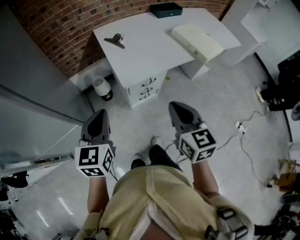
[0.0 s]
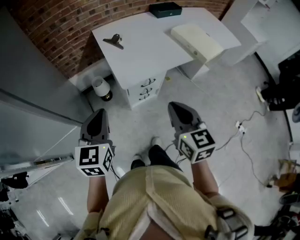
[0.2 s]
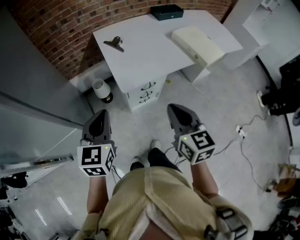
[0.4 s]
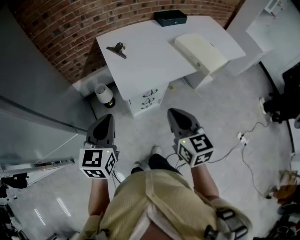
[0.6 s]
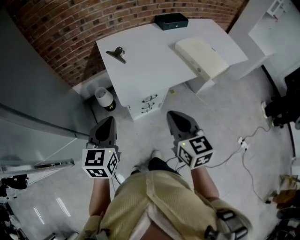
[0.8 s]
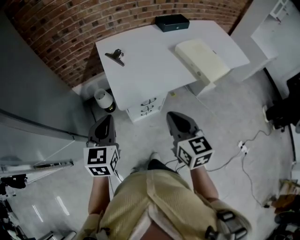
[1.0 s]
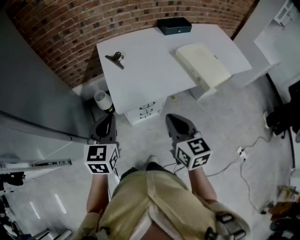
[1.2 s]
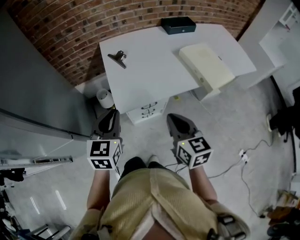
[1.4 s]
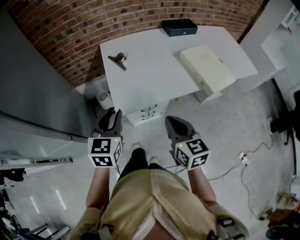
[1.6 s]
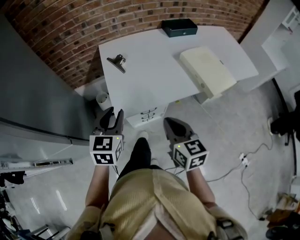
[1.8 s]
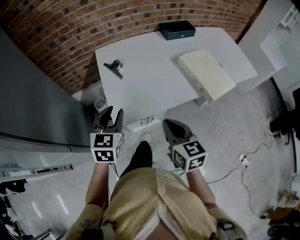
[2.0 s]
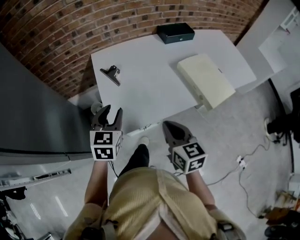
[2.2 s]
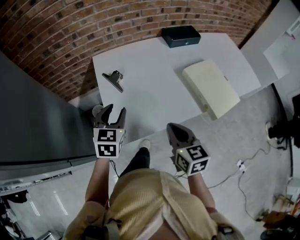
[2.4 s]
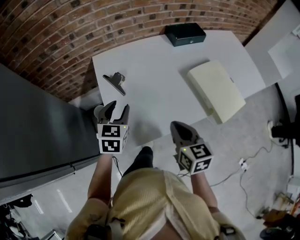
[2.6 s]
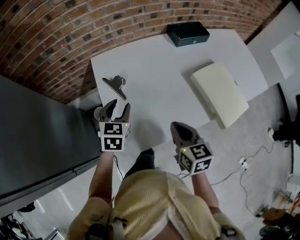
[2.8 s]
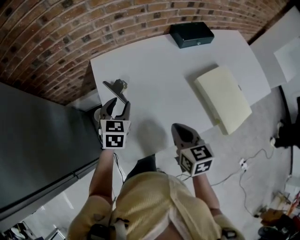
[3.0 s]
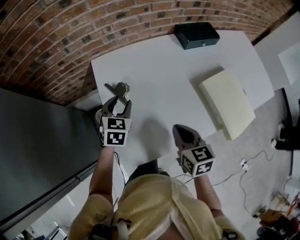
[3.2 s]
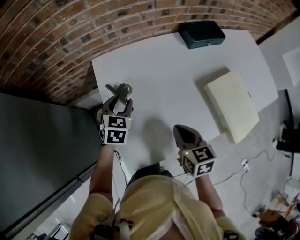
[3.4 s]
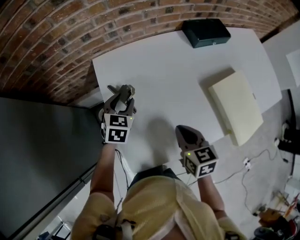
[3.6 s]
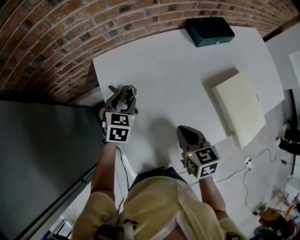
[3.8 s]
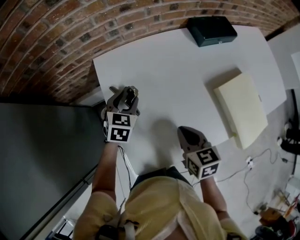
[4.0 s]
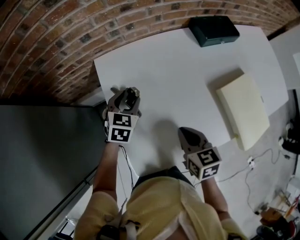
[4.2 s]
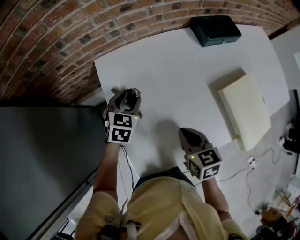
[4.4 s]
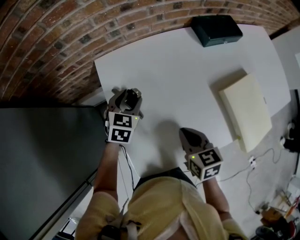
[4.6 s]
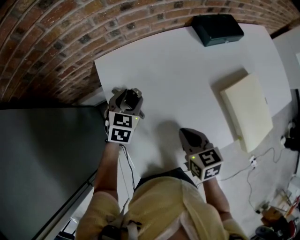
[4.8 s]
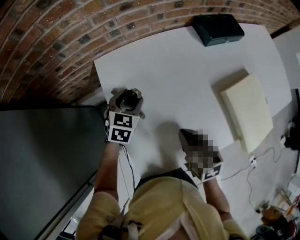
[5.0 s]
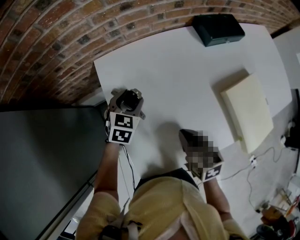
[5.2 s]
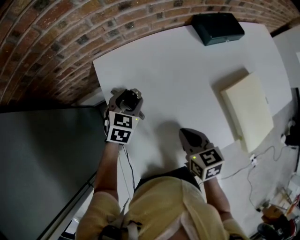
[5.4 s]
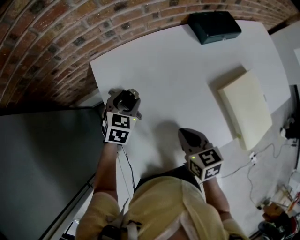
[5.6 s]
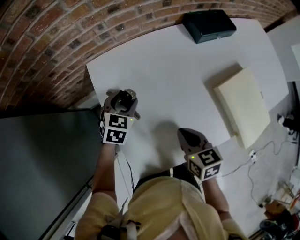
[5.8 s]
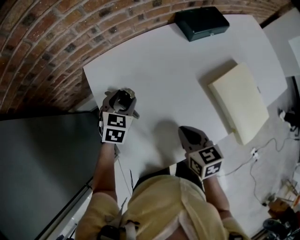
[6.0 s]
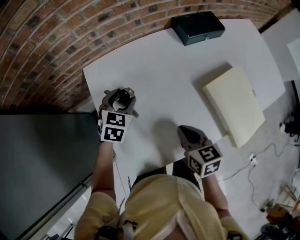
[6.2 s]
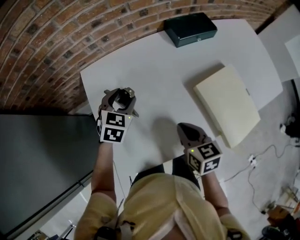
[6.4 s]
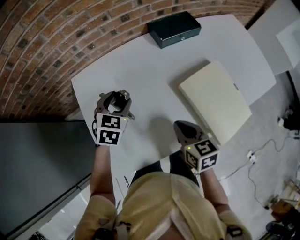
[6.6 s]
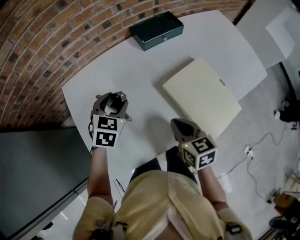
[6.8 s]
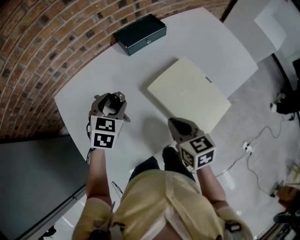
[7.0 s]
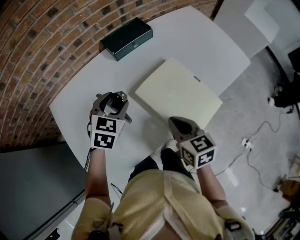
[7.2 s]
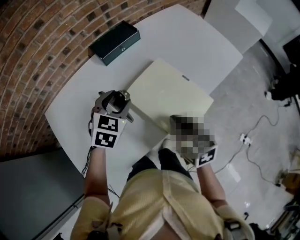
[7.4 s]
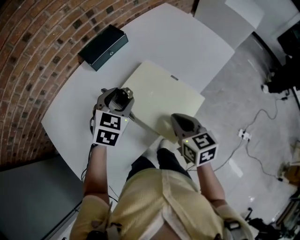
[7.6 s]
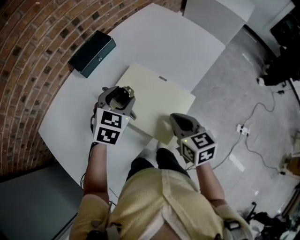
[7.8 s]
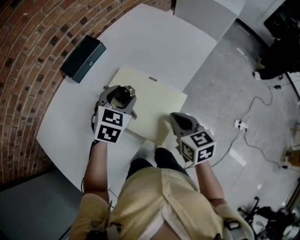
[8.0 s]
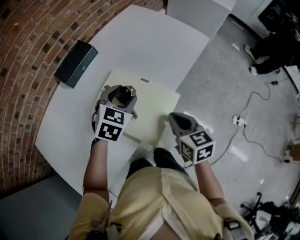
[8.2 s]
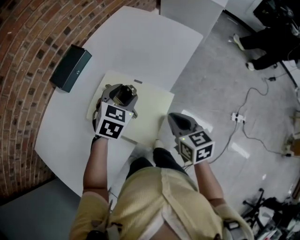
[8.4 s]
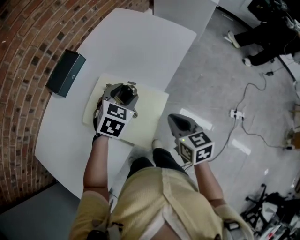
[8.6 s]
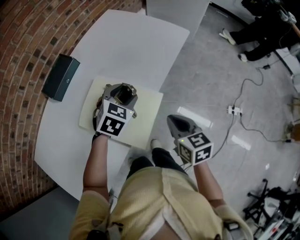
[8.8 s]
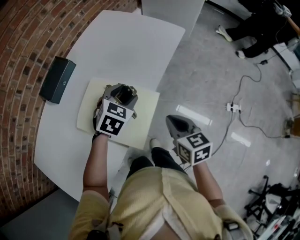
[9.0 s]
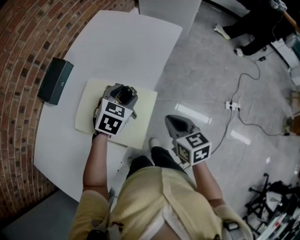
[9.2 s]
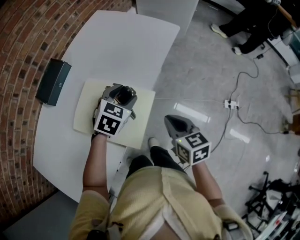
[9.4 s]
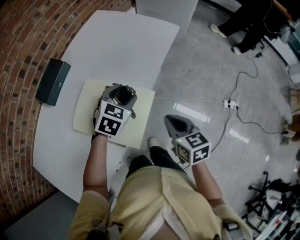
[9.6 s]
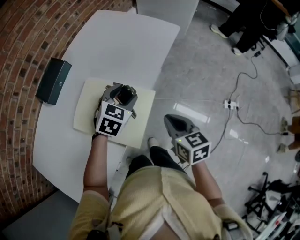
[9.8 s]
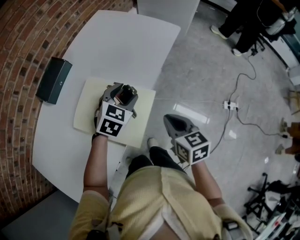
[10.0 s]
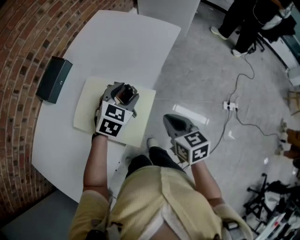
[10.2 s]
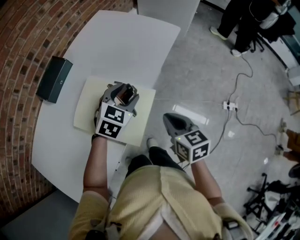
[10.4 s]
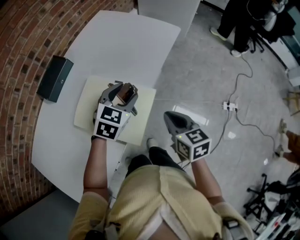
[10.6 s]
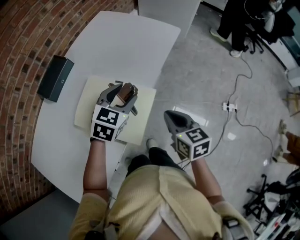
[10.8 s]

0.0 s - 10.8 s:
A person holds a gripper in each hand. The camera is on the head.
0.0 s - 1.6 s: Both grippers move forward and to the right, about 15 cm.
1.6 s - 3.0 s: Both grippers move forward, roughly 30 cm. The left gripper opens up.
3.0 s - 4.6 s: Both grippers travel together forward and downward, some 10 cm.
4.6 s - 6.2 s: The grippers both shift to the right by about 5 cm.
6.2 s - 7.8 s: The left gripper moves roughly 50 cm, and changes its angle by some 30 degrees. Meanwhile the right gripper ends up approximately 35 cm from where it was, and rotates roughly 30 degrees.
7.8 s - 9.2 s: The two grippers go about 15 cm to the right. The left gripper rotates about 20 degrees.
9.2 s - 10.8 s: The grippers make only small movements.

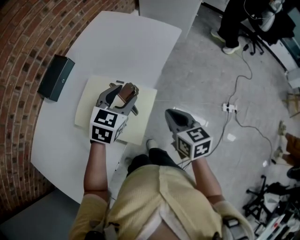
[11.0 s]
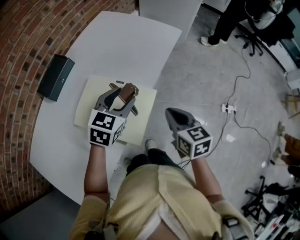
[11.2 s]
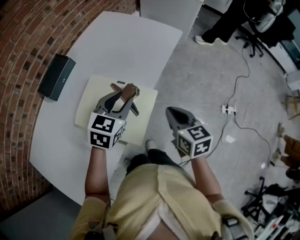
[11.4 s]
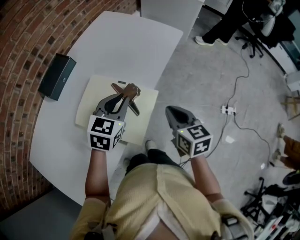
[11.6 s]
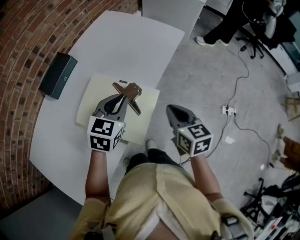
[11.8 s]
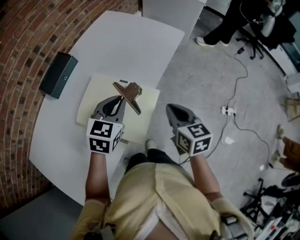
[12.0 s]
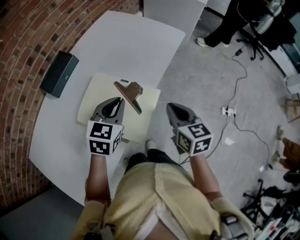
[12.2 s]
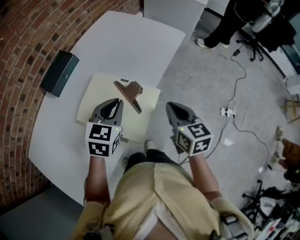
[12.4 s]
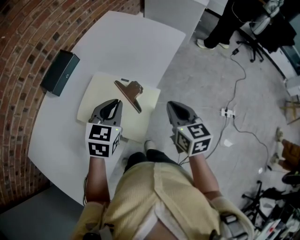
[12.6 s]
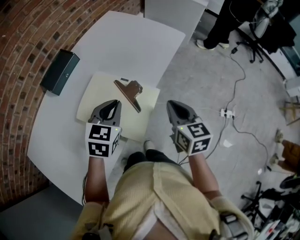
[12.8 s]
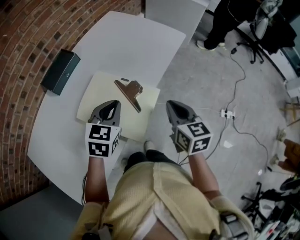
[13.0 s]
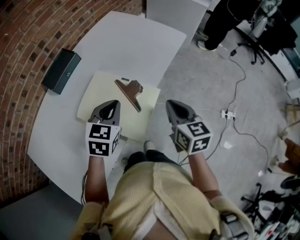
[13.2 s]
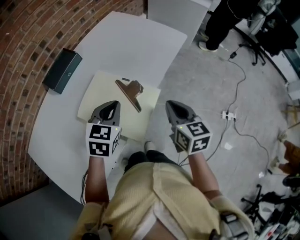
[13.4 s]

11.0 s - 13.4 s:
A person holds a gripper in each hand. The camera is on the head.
11.0 s - 12.2 s: The left gripper moves about 5 cm, and closes its fingers.
12.2 s - 13.4 s: The grippers make only small movements.

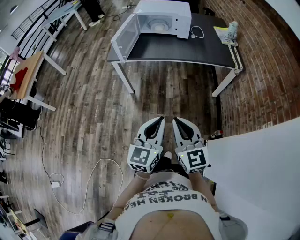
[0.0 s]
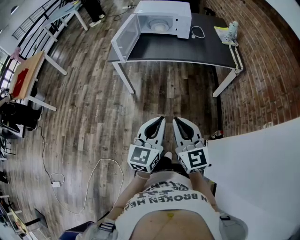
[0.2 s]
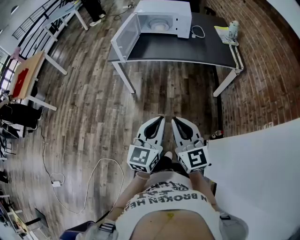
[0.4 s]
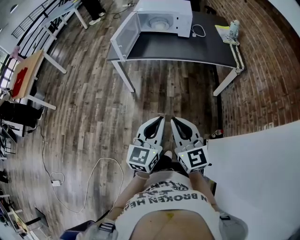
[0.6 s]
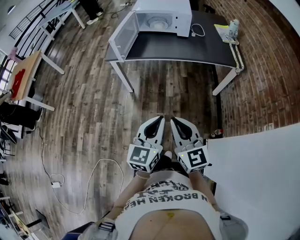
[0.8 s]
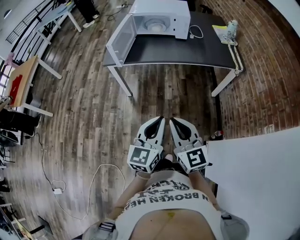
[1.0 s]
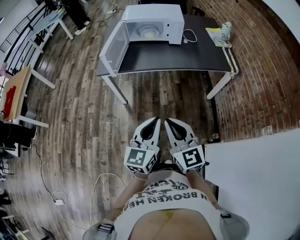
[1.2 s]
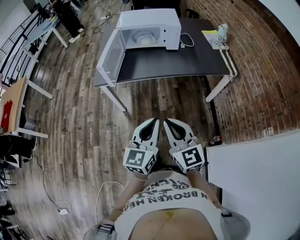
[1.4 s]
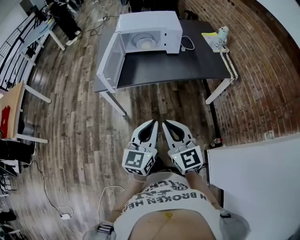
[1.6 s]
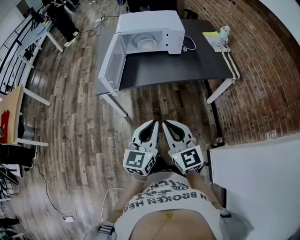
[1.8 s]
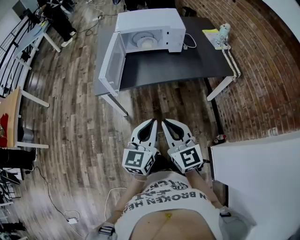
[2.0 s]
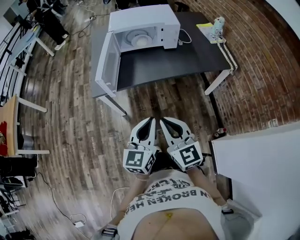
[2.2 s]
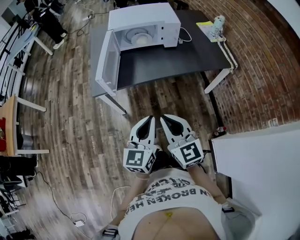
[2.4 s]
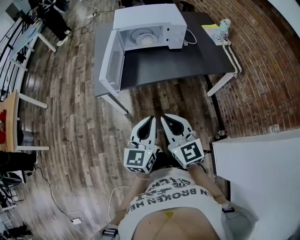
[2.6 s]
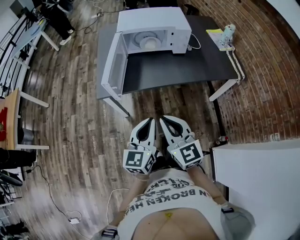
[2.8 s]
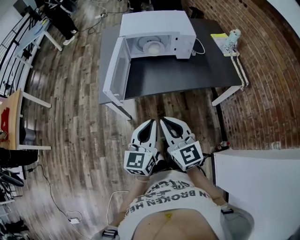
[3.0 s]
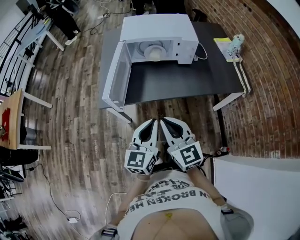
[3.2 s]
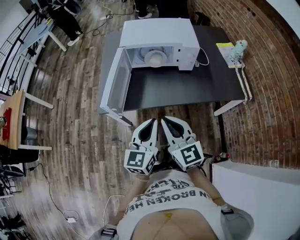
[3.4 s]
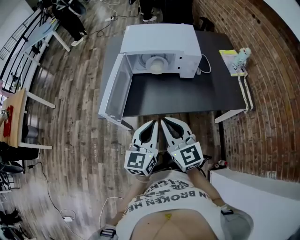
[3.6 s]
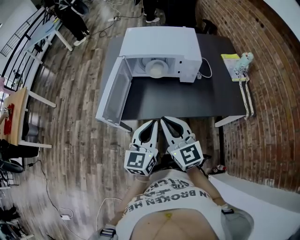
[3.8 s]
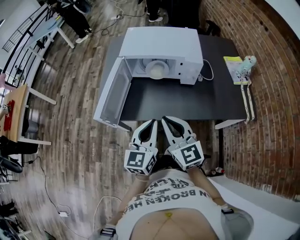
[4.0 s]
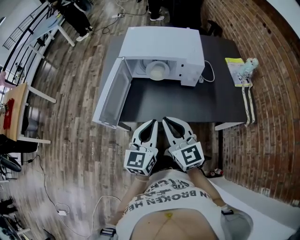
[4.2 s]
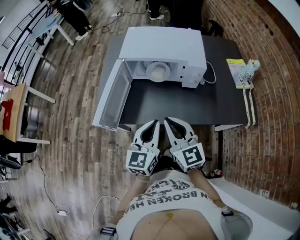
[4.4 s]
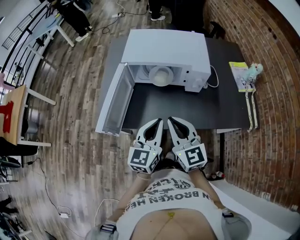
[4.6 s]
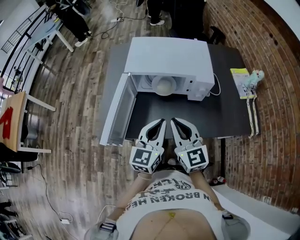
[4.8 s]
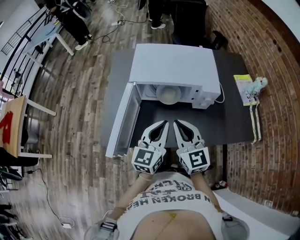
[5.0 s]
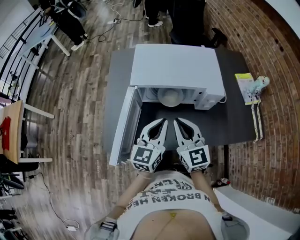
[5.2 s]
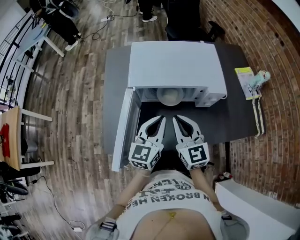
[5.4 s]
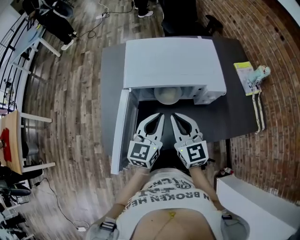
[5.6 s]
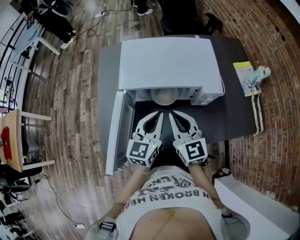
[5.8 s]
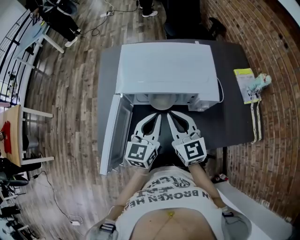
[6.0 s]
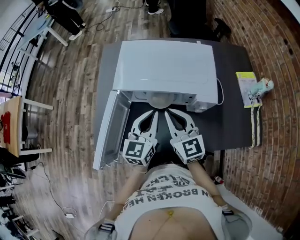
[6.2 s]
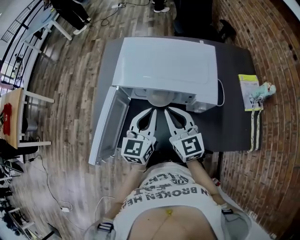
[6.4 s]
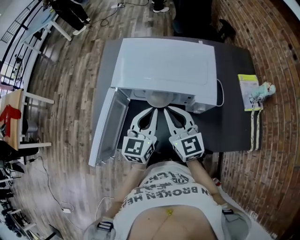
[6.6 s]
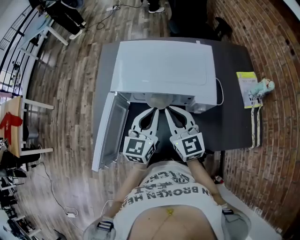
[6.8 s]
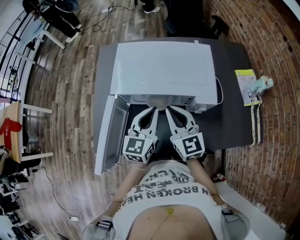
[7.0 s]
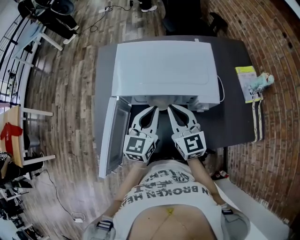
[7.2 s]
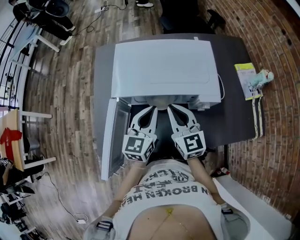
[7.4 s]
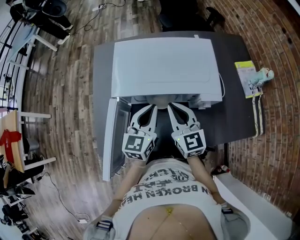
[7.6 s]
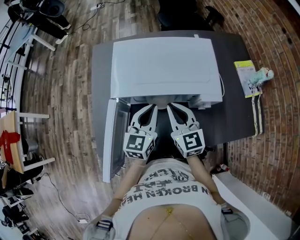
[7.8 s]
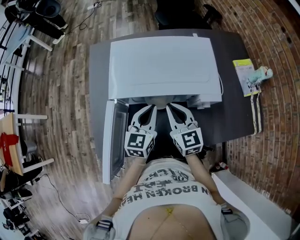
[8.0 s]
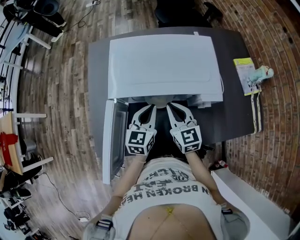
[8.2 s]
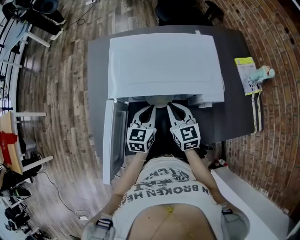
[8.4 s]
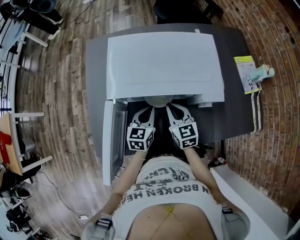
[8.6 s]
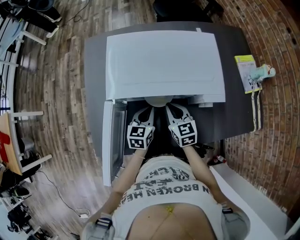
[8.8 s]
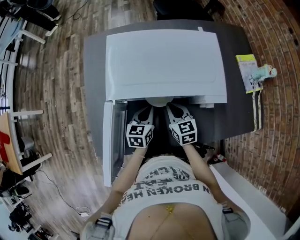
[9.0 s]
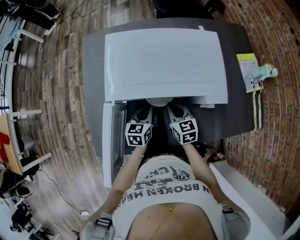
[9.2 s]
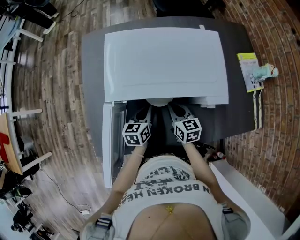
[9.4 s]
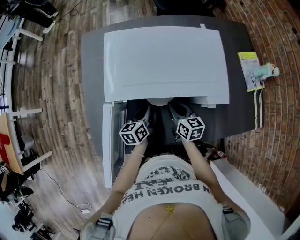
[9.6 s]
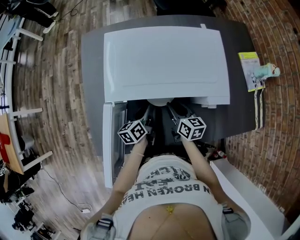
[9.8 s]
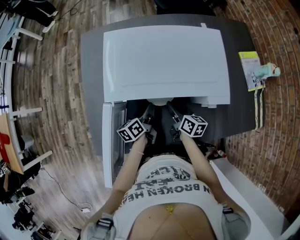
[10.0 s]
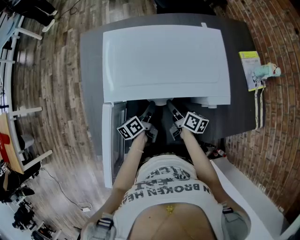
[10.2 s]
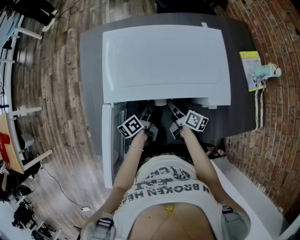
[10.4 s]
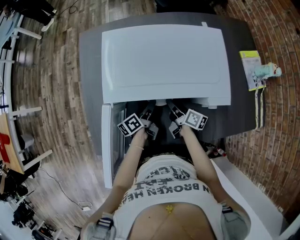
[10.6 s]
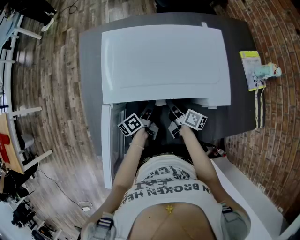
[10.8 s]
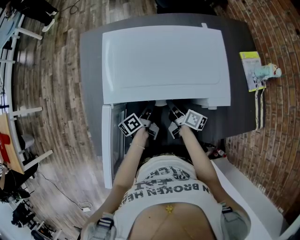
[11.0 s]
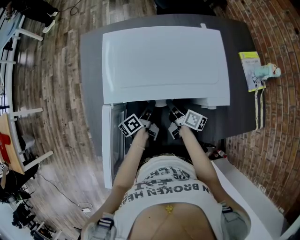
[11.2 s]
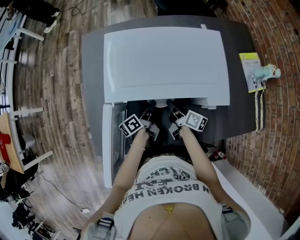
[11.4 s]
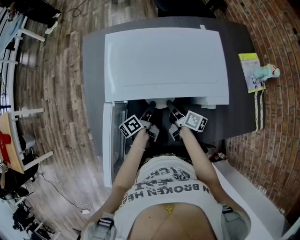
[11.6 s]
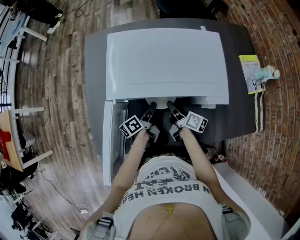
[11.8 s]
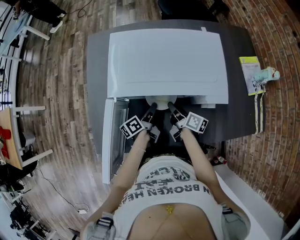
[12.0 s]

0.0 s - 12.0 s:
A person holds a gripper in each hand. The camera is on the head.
0.0 s - 1.6 s: Both grippers travel together forward, approximately 20 cm.
1.6 s - 3.0 s: The two grippers go approximately 15 cm forward and to the left.
3.0 s - 4.4 s: Both grippers travel together forward and to the right, about 20 cm.
4.4 s - 6.0 s: Both grippers move forward, some 25 cm.
6.0 s - 7.6 s: The grippers both shift forward by roughly 5 cm.
7.6 s - 9.0 s: Both grippers move downward, roughly 15 cm. The left gripper turns by some 20 degrees; the right gripper turns by roughly 20 degrees.
9.0 s - 10.4 s: The right gripper goes some 5 cm downward, twists some 60 degrees clockwise, seen from behind, and opens, while the left gripper shifts by some 5 cm, rolls counterclockwise, seen from behind, by roughly 50 degrees, and opens its fingers.
10.4 s - 12.0 s: The left gripper closes its fingers. The right gripper closes up.
